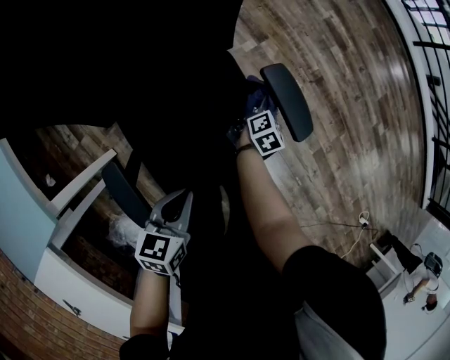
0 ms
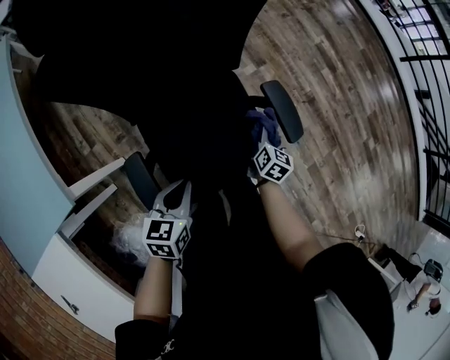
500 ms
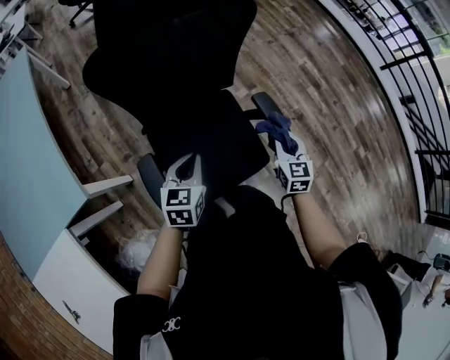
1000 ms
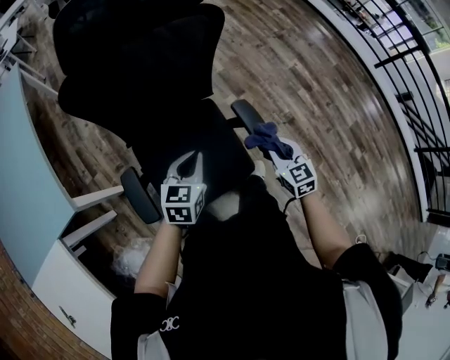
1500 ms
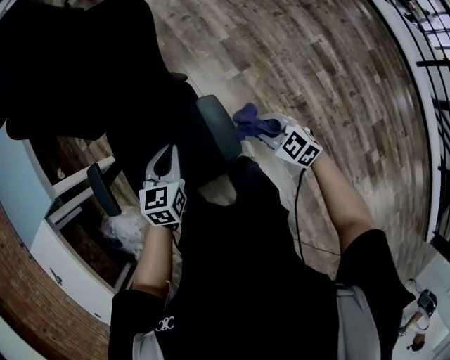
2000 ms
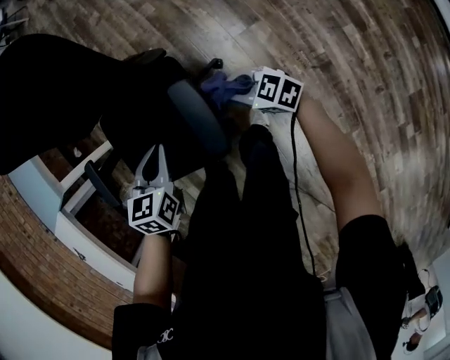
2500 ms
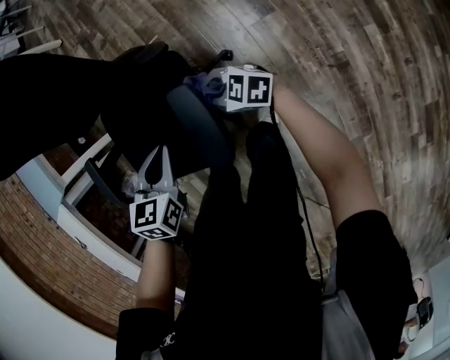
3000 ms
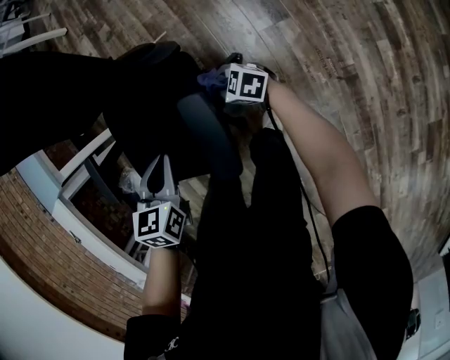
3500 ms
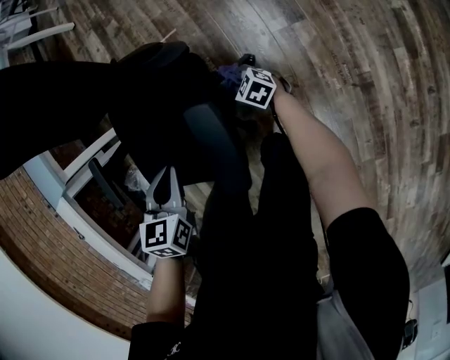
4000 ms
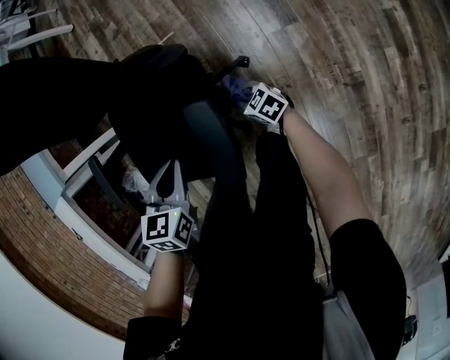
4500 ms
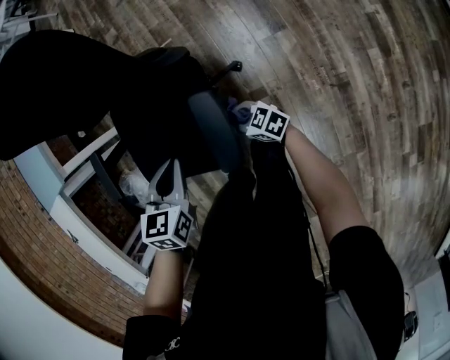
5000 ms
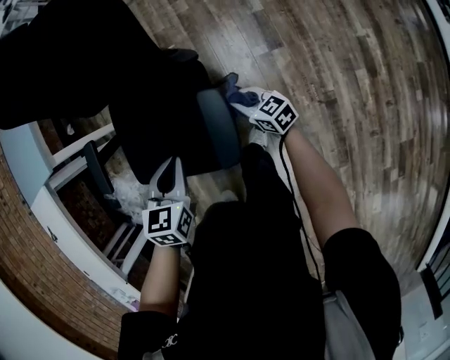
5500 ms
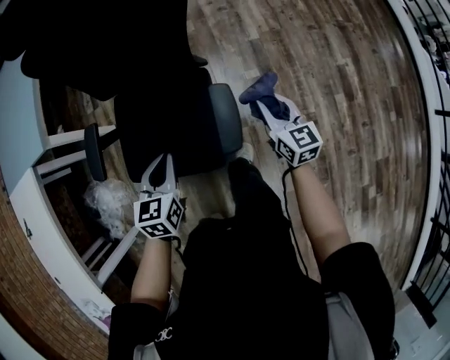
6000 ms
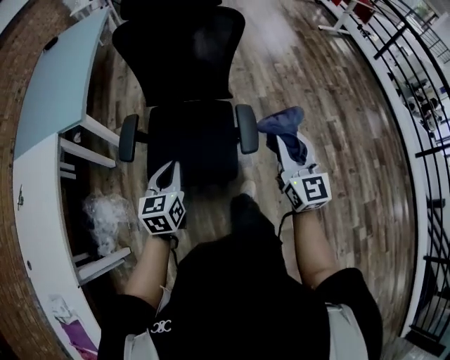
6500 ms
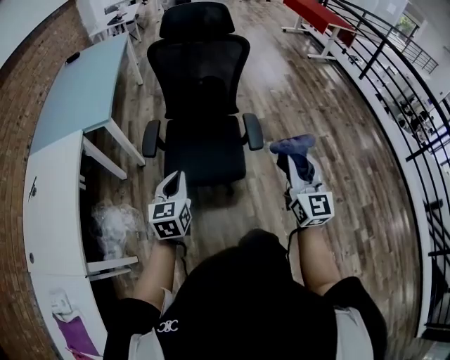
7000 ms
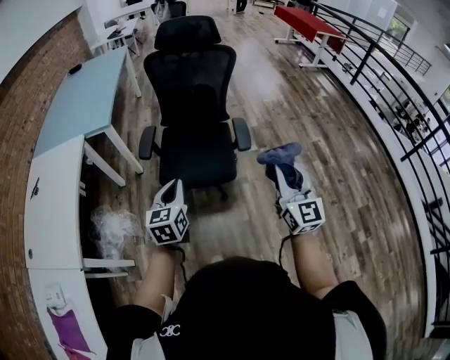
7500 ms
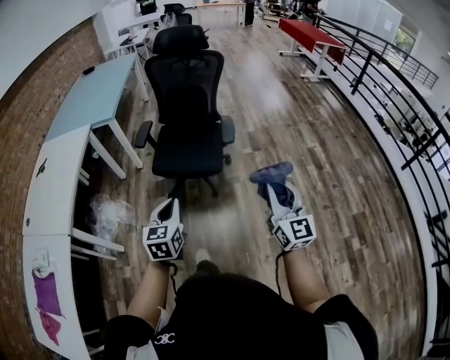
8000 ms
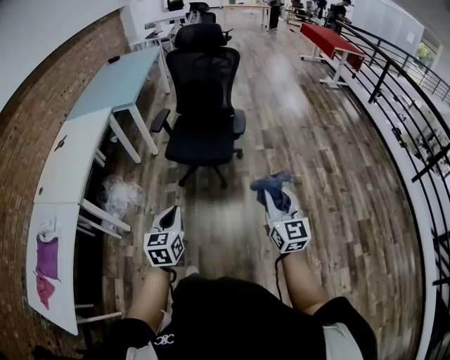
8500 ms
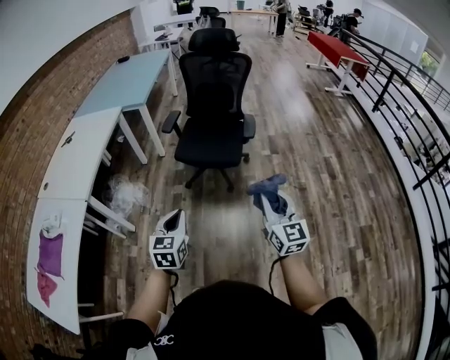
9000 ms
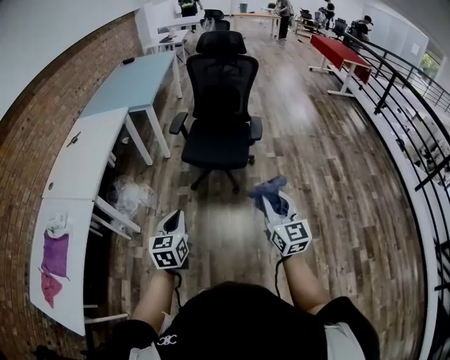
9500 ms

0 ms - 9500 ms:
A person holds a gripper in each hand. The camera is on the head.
0 ms - 2000 ms: The right gripper travels upward by roughly 20 cm, and changes its angle by some 120 degrees, while the left gripper shifts by roughly 25 cm, and changes its angle by some 30 degrees.
2000 ms - 4000 ms: The left gripper moves downward, approximately 10 cm, and changes its angle by roughly 30 degrees. Meanwhile the right gripper shifts about 35 cm downward, and changes its angle by some 20 degrees.
4000 ms - 5500 ms: The right gripper heads upward, covering roughly 20 cm, and turns by some 20 degrees, while the left gripper shifts some 10 cm upward.
5500 ms - 7500 ms: The pair of grippers is taken backward and to the left, approximately 50 cm. The left gripper travels upward by approximately 20 cm, and angles its fingers upward, by approximately 30 degrees, while the right gripper heads upward, covering about 50 cm, and angles its fingers upward, by roughly 40 degrees.
7500 ms - 9500 ms: The two grippers go approximately 30 cm backward.

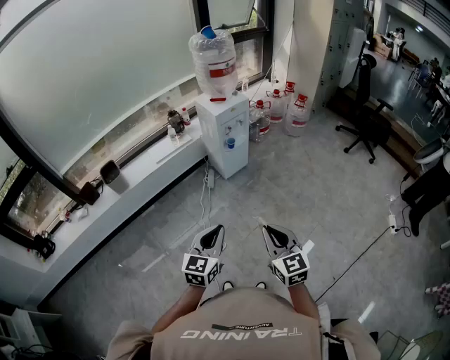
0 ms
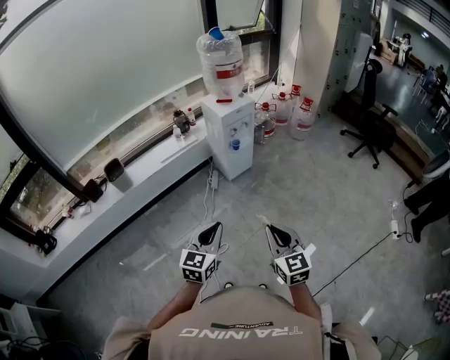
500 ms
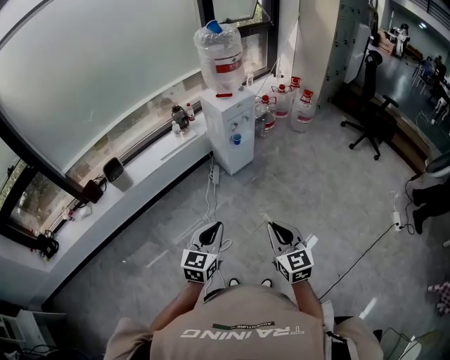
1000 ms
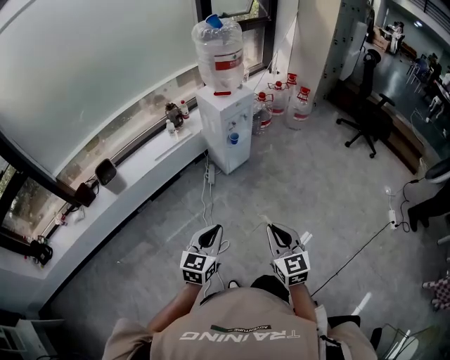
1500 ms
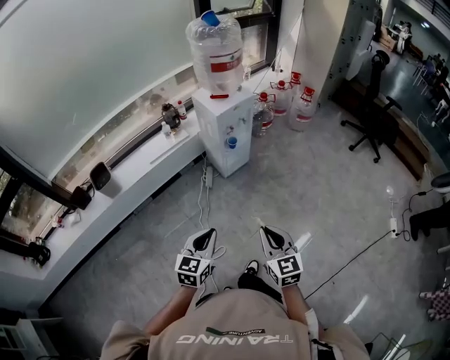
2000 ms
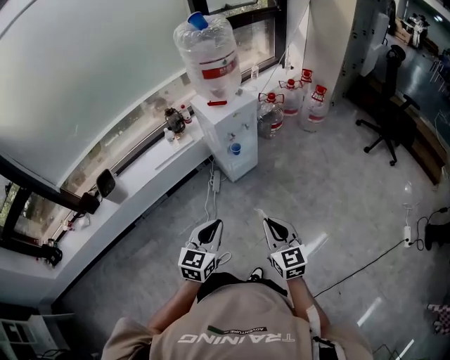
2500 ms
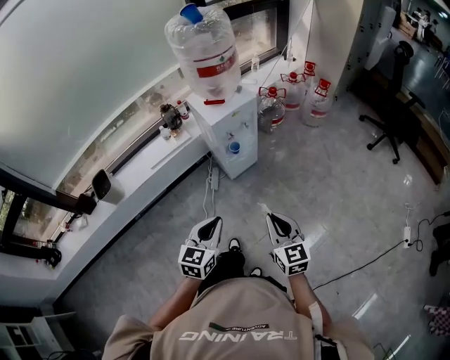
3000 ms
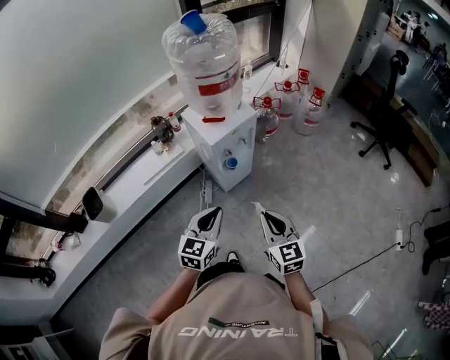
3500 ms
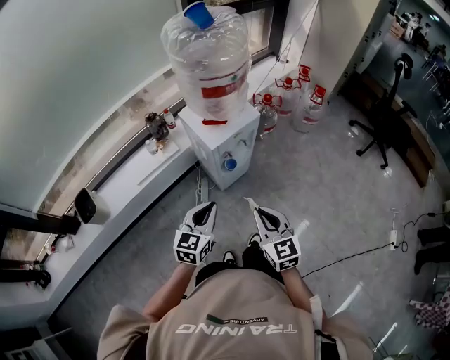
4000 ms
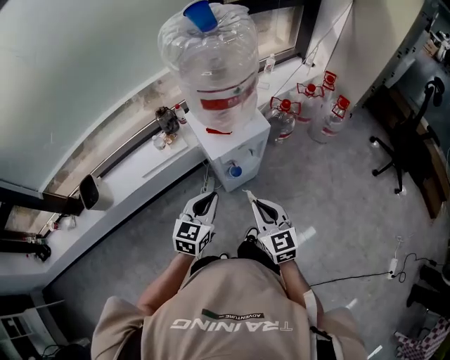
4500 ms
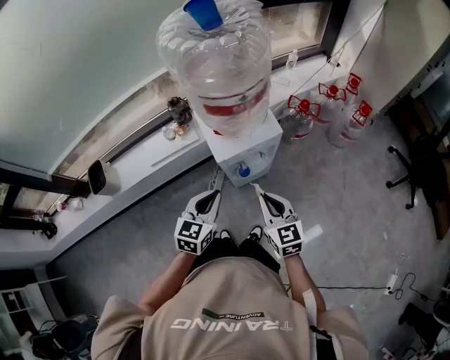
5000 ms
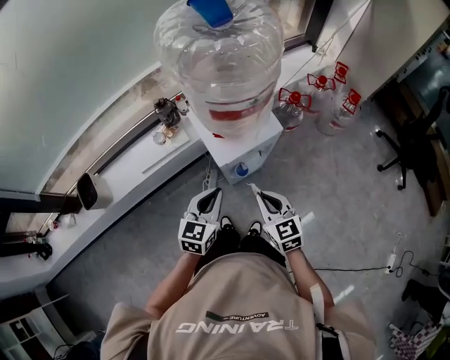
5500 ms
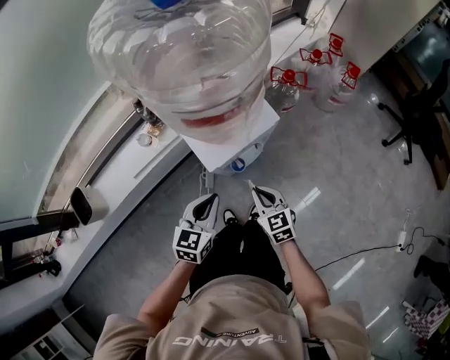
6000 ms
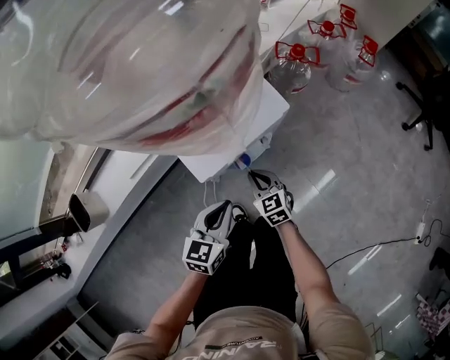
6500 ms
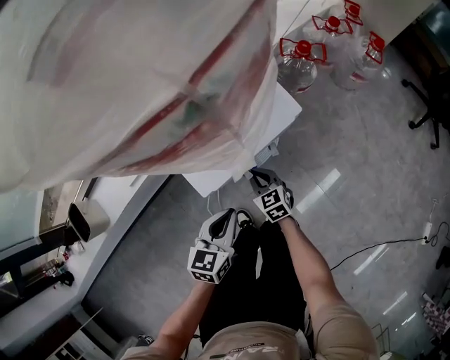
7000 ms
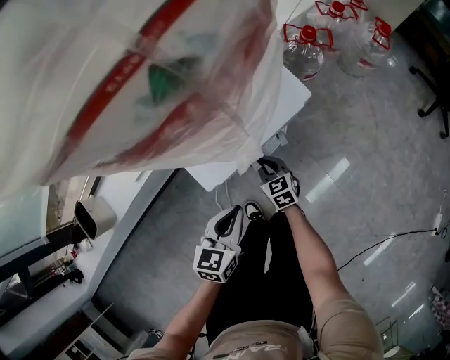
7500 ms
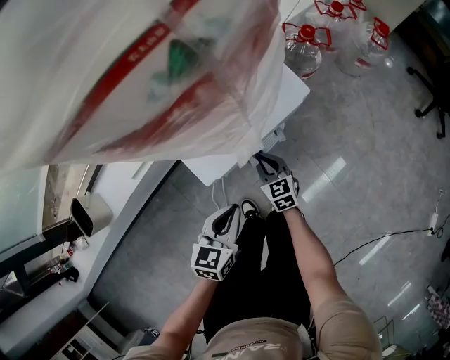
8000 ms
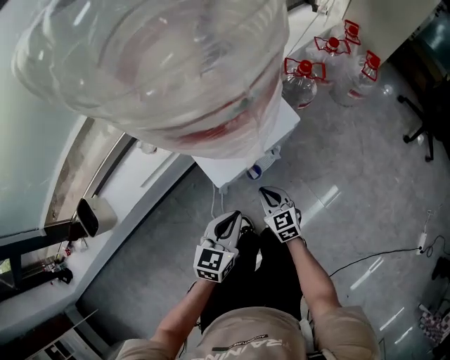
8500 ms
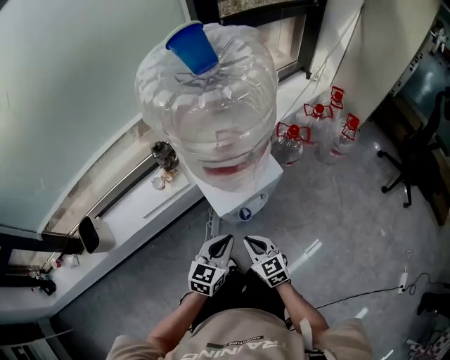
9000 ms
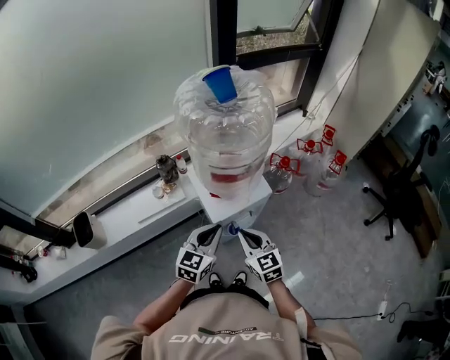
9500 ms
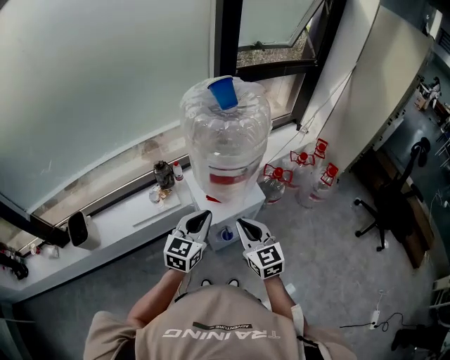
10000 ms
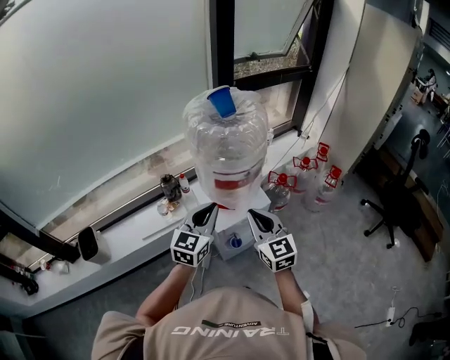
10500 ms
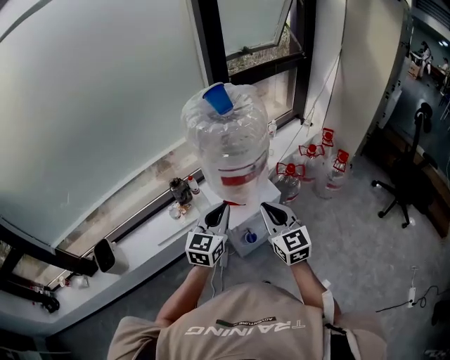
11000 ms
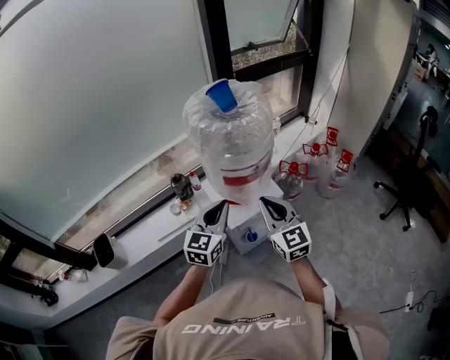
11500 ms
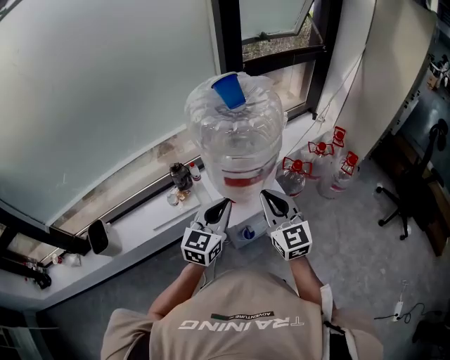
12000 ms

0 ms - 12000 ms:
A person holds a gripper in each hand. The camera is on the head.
0 ms - 2000 ms: The left gripper is displaced forward and downward by some 15 cm. Meanwhile the right gripper heads forward, covering roughly 15 cm.
2000 ms - 4000 ms: Both grippers travel together forward, some 35 cm.
4000 ms - 6000 ms: Both grippers move forward and downward, some 25 cm.
6000 ms - 8000 ms: The right gripper shifts some 25 cm downward and forward. The left gripper shifts some 15 cm downward.
8000 ms - 10000 ms: The two grippers go about 40 cm upward. The right gripper rotates roughly 20 degrees. The left gripper rotates approximately 30 degrees.
10000 ms - 12000 ms: The left gripper ends up about 5 cm from where it was, while the right gripper is displaced forward and upward by about 10 cm.

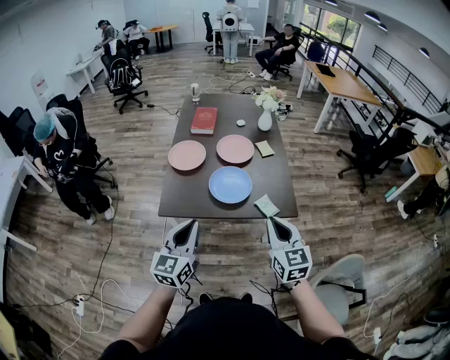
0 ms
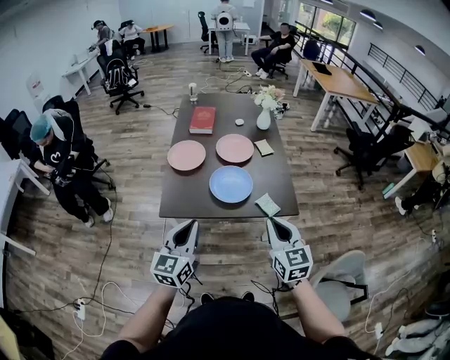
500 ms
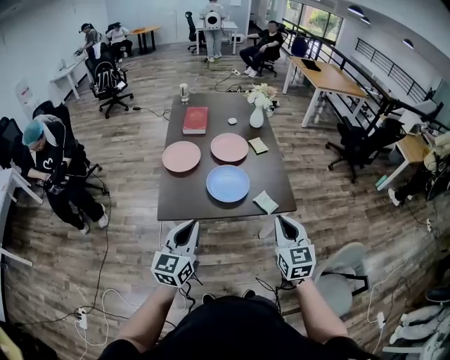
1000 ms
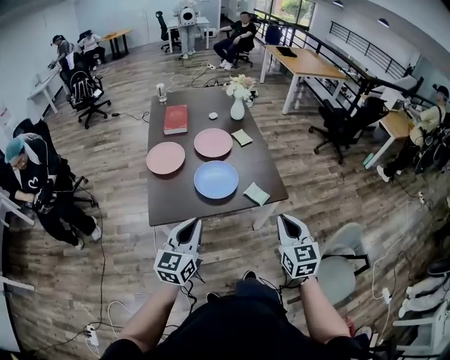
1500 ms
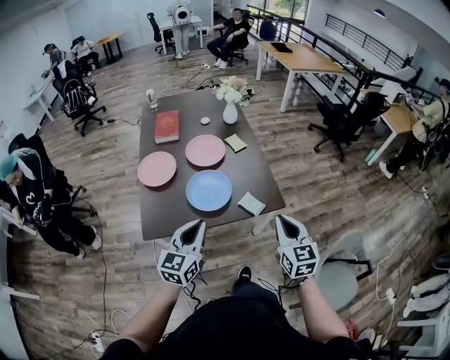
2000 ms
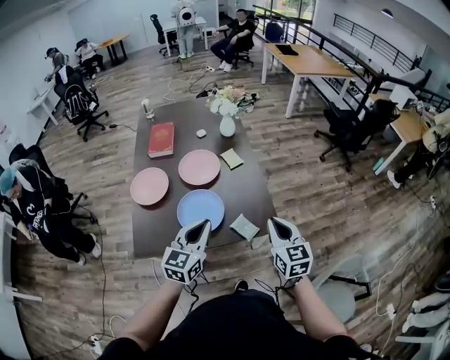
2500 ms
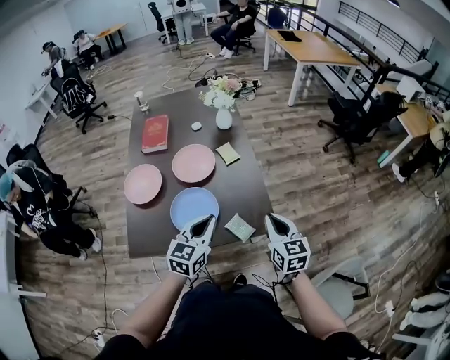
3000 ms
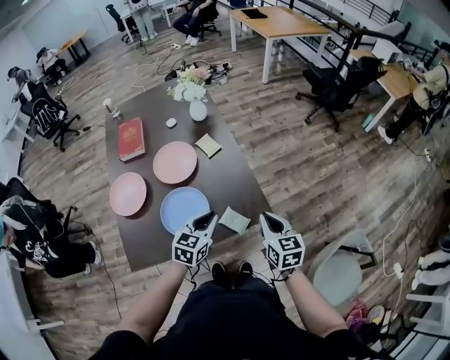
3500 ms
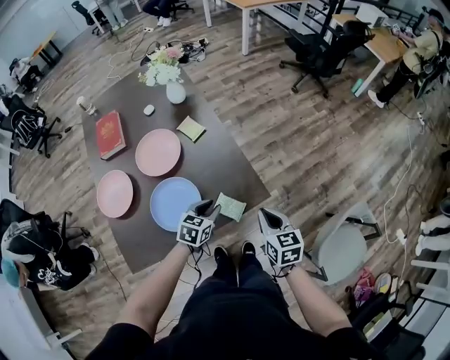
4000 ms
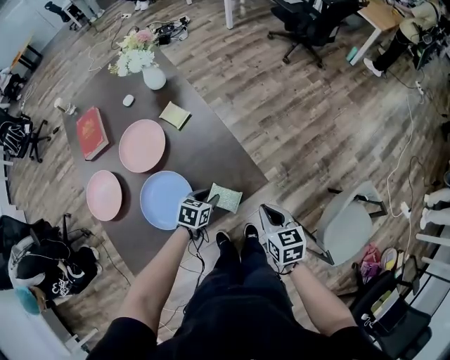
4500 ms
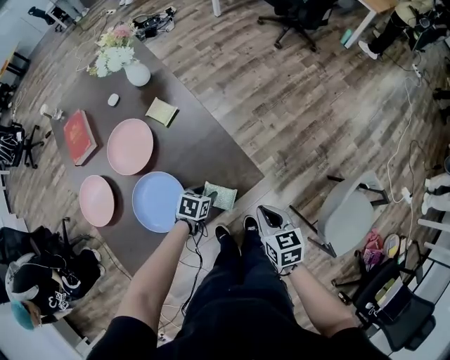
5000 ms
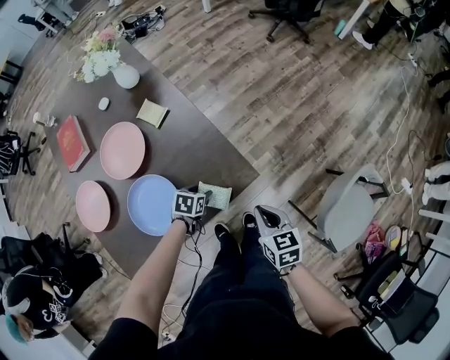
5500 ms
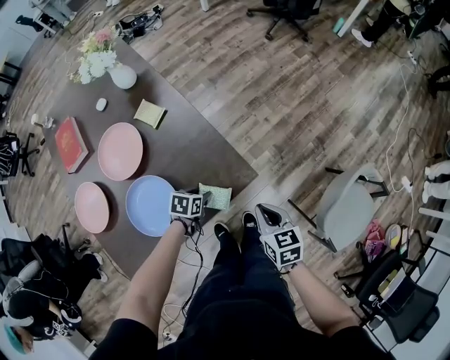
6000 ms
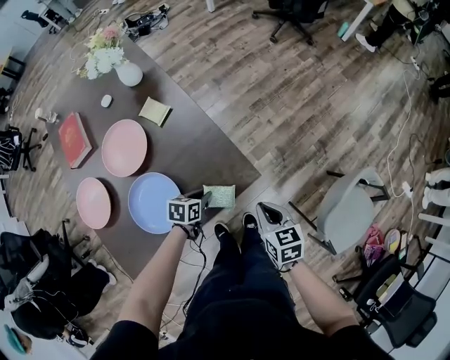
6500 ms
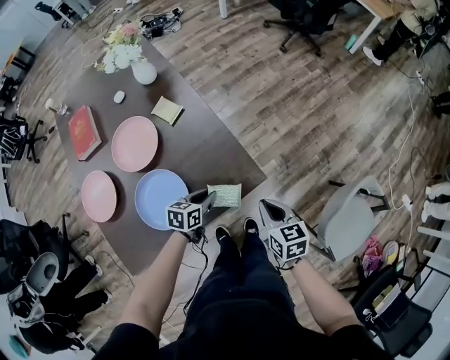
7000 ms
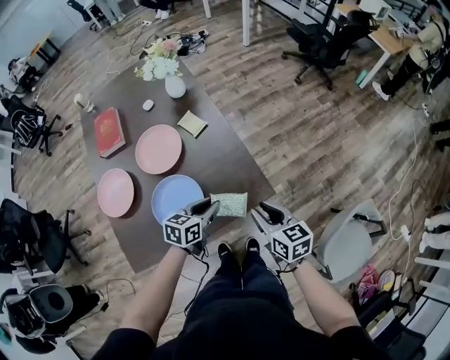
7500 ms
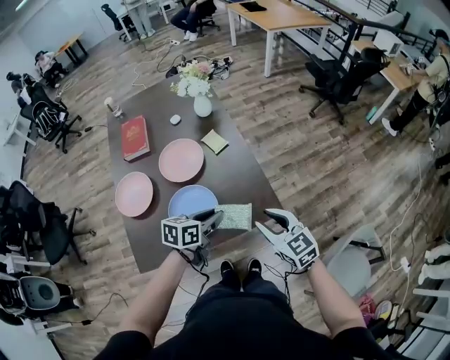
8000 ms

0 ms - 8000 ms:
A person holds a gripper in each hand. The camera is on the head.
0 ms - 2000 ms: The right gripper changes place by approximately 10 cm.
2000 ms - 4000 ms: The right gripper is displaced downward by about 15 cm, and rotates approximately 30 degrees.
4000 ms - 6000 ms: The right gripper heads downward, covering roughly 10 cm.
6000 ms - 8000 ms: The right gripper moves upward, some 15 cm, changes its angle by approximately 40 degrees, and opens up.
